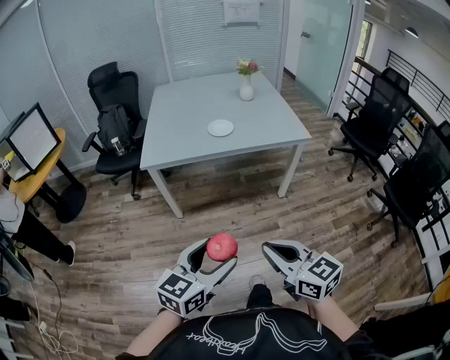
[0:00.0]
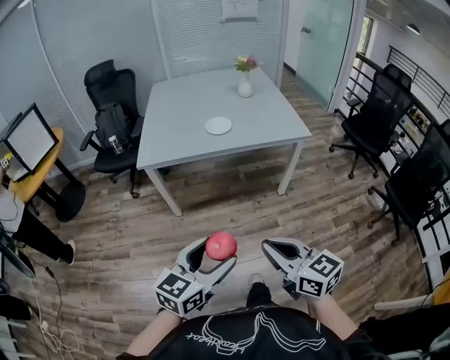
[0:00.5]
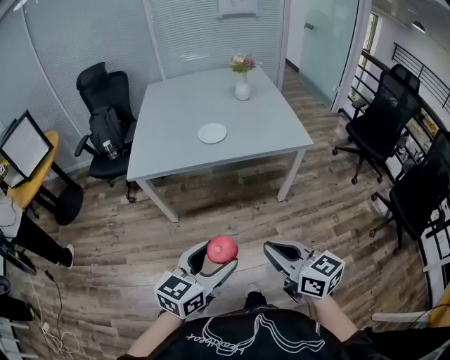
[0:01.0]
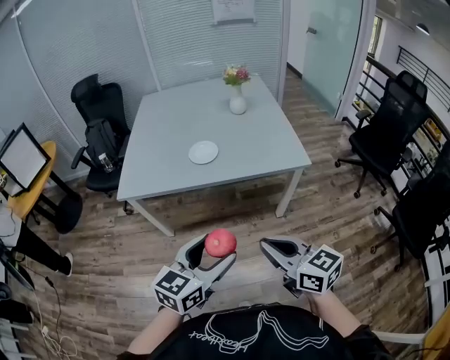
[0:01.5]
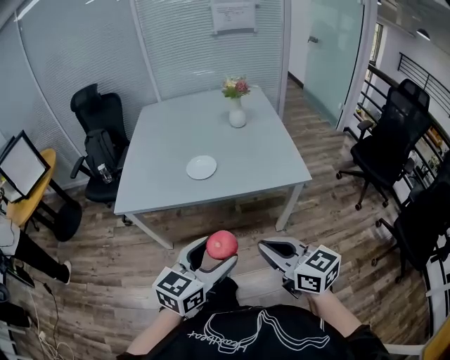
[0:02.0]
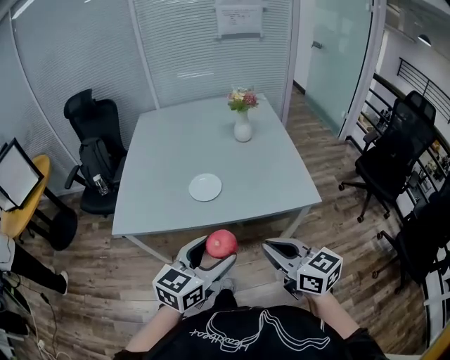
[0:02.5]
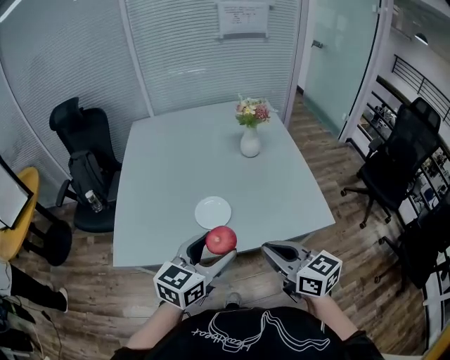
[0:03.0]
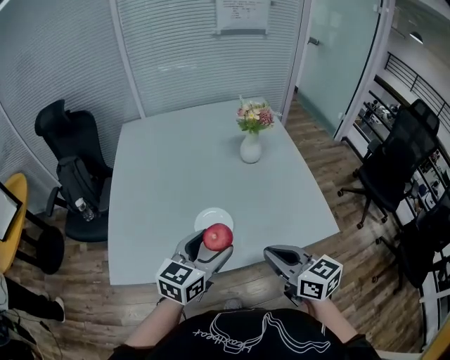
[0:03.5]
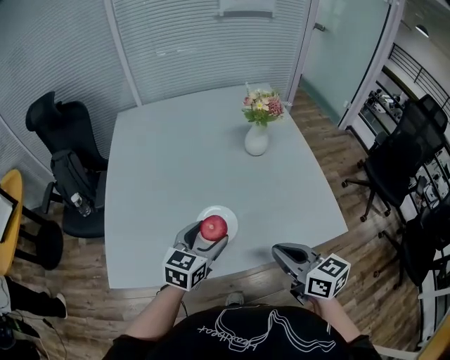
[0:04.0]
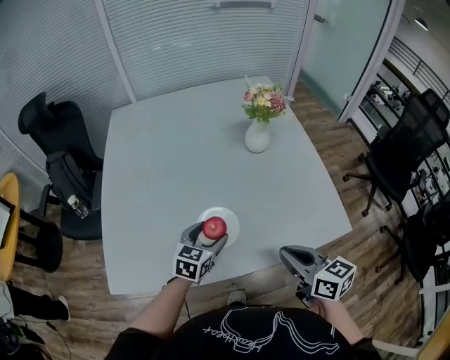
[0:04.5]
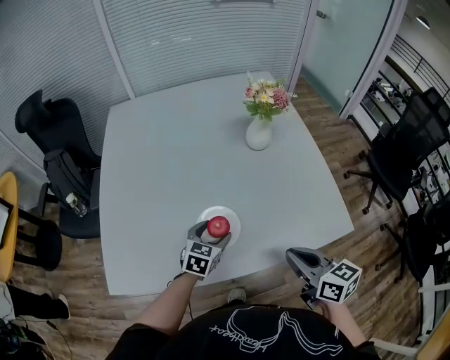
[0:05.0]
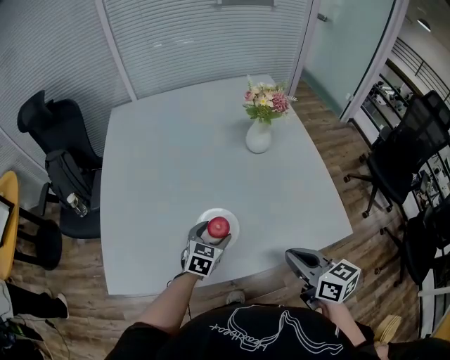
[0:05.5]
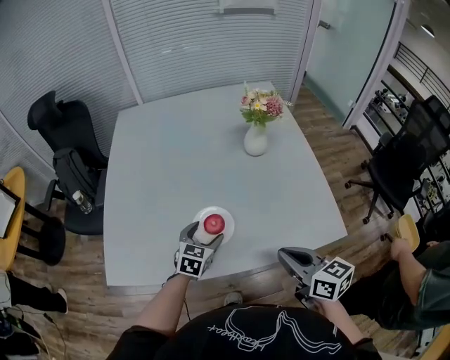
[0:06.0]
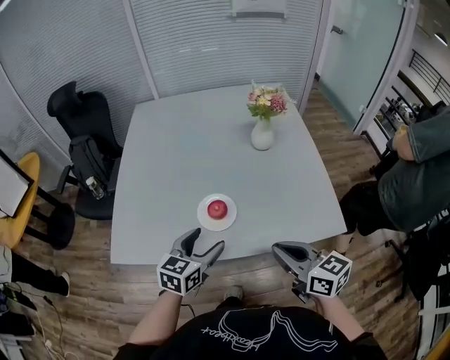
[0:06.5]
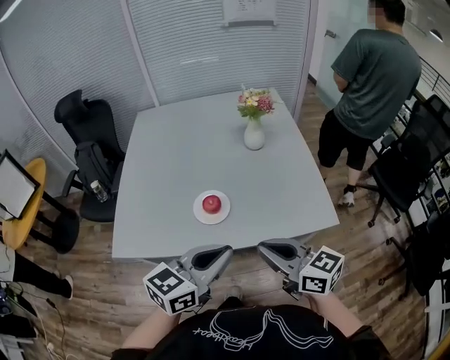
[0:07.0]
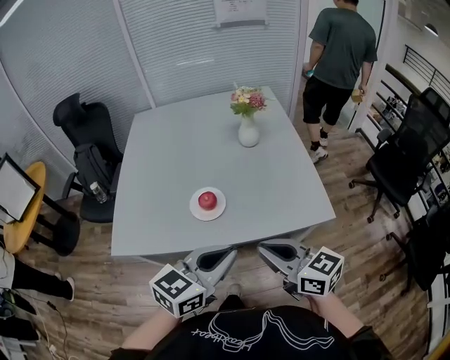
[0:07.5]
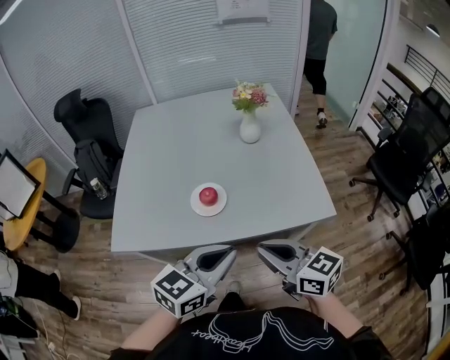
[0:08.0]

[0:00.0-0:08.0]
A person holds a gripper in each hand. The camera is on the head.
0:00.0 to 0:02.0: The grippers both shift forward and to the right by about 30 cm.
0:02.0 to 0:04.0: The grippers both shift forward by about 40 cm.
0:04.0 to 0:06.0: The left gripper moves downward, roughly 10 cm.
0:06.0 to 0:08.0: The left gripper heads backward and upward, covering roughly 35 cm, swivels approximately 30 degrees, and closes; the right gripper shifts some 15 cm backward and upward.

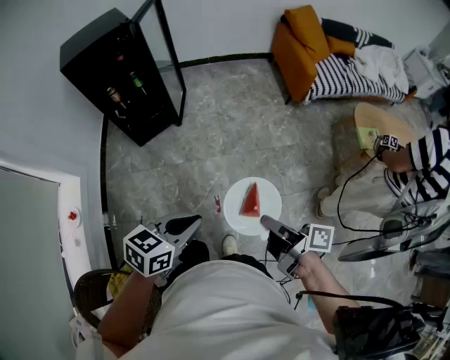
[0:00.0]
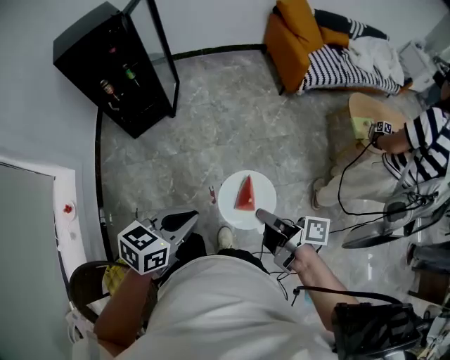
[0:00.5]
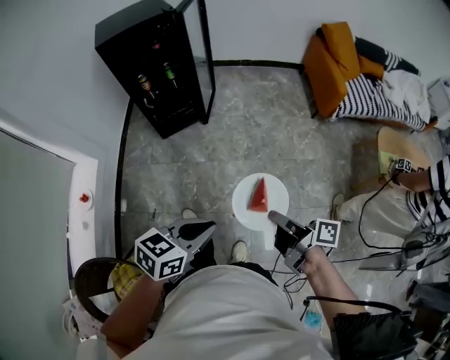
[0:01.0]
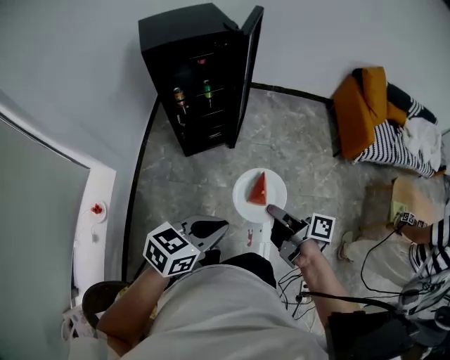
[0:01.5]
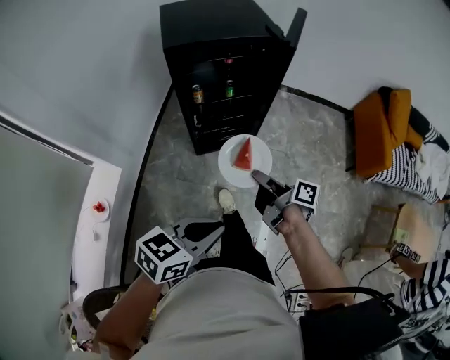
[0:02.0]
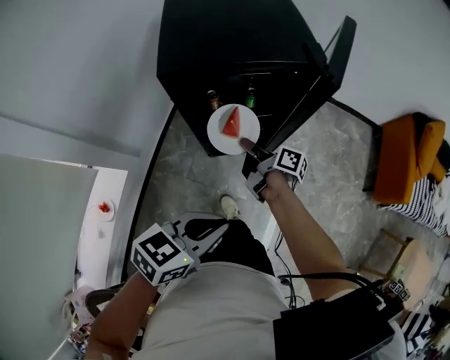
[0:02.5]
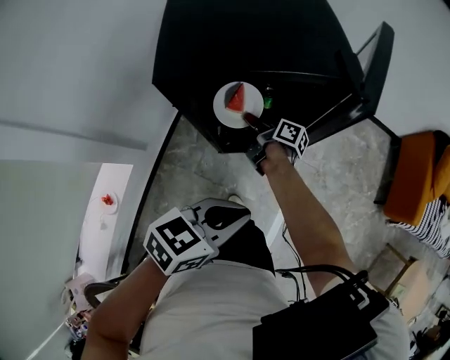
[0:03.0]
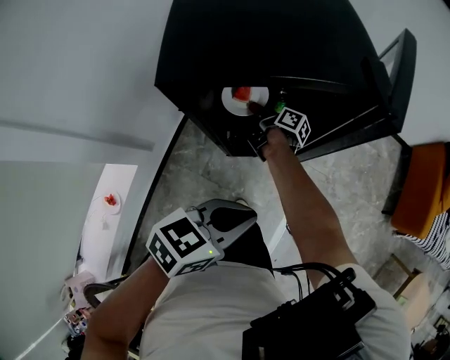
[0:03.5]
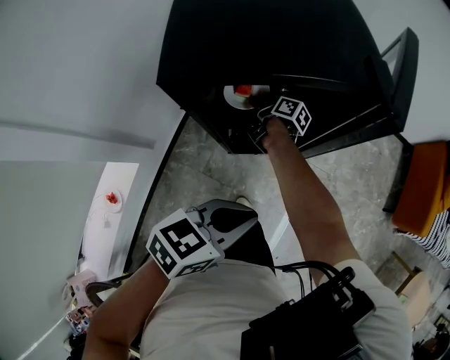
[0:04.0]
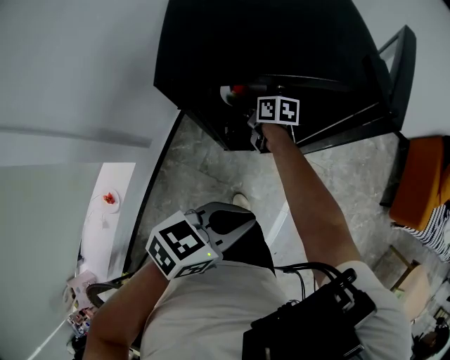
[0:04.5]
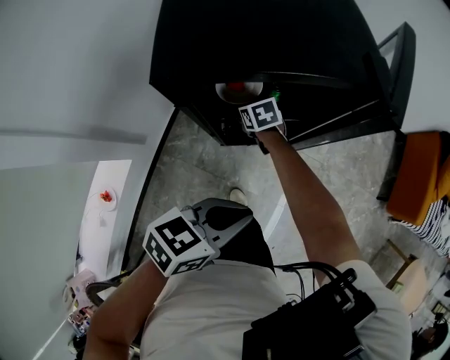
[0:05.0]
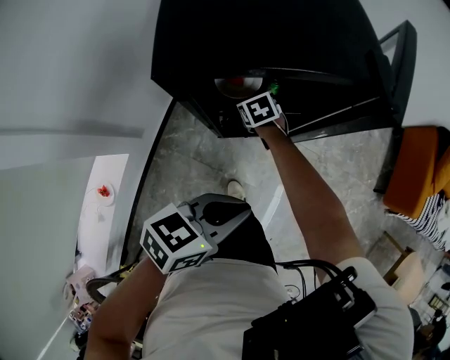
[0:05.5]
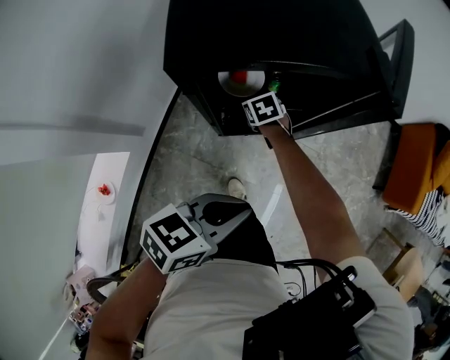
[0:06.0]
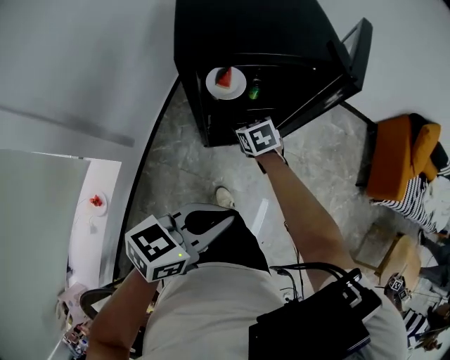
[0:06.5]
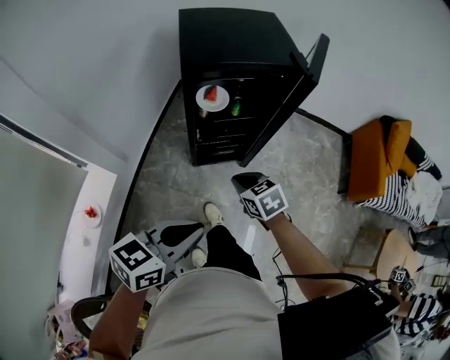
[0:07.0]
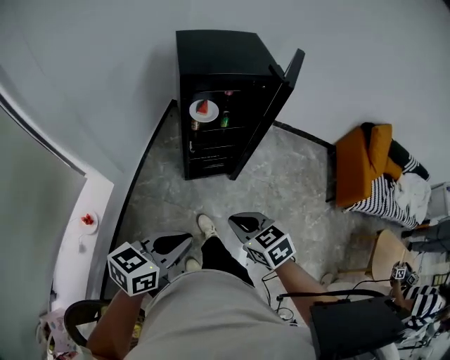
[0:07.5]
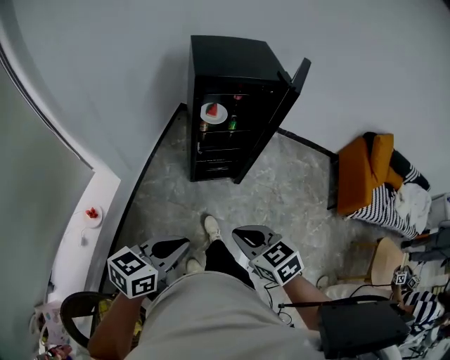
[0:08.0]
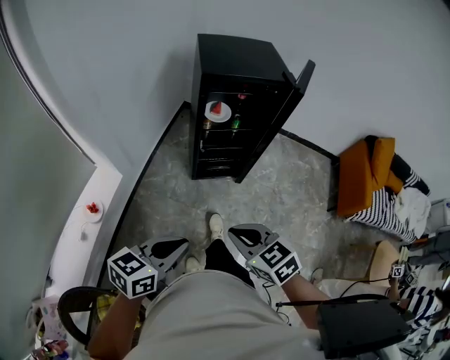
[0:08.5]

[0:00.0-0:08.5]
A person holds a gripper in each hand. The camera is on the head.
0:00.0 to 0:02.0: Both grippers are carried to the left and forward, approximately 50 cm.
0:02.0 to 0:04.0: The right gripper is displaced forward, to the left and downward by about 50 cm. The left gripper heads forward, covering about 30 cm.
0:04.0 to 0:06.5: The right gripper goes approximately 15 cm backward, twists some 70 degrees counterclockwise, seen from behind, and opens up, while the left gripper travels backward and upward by about 10 cm.
0:06.5 to 0:08.5: The right gripper heads backward and upward, covering about 50 cm, rotates about 20 degrees, and closes its fingers. Meanwhile the left gripper travels backward by about 25 cm.

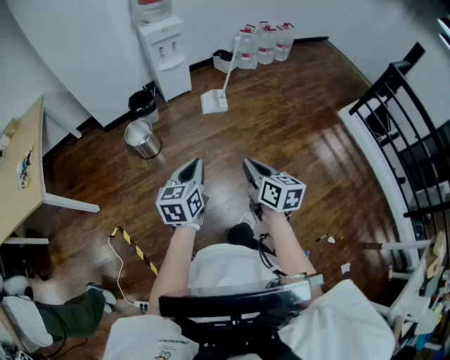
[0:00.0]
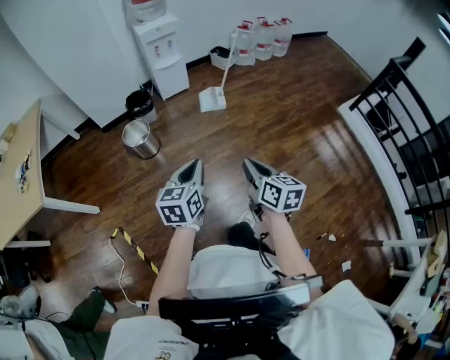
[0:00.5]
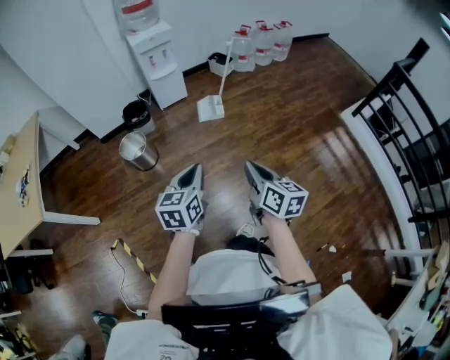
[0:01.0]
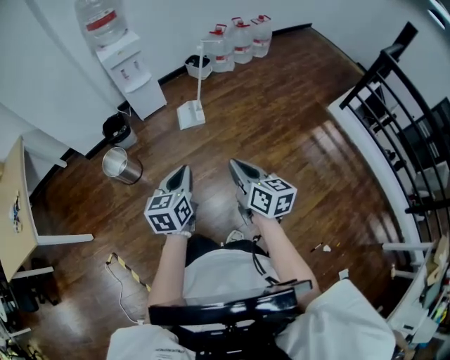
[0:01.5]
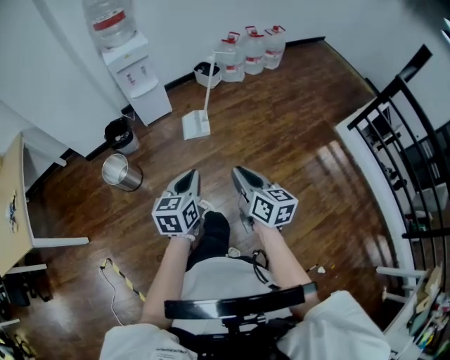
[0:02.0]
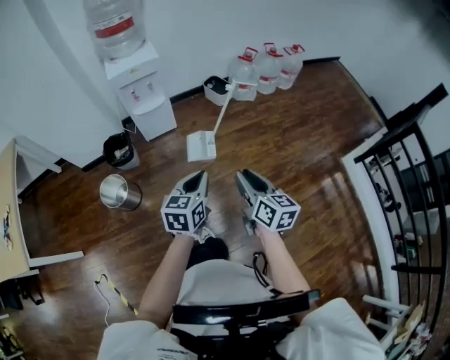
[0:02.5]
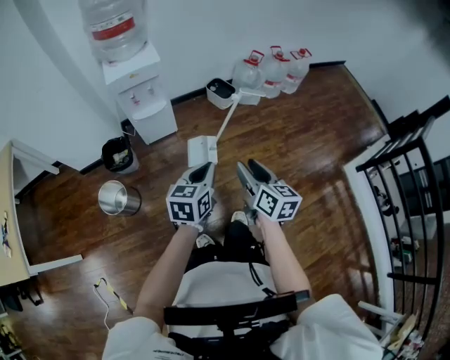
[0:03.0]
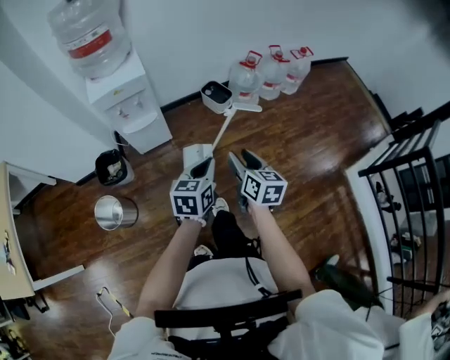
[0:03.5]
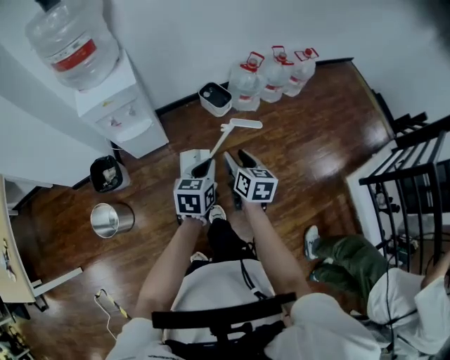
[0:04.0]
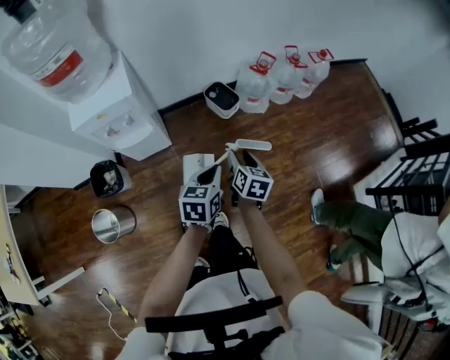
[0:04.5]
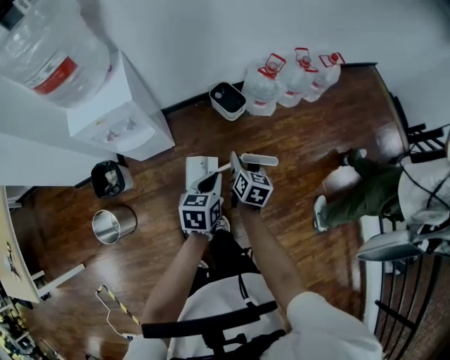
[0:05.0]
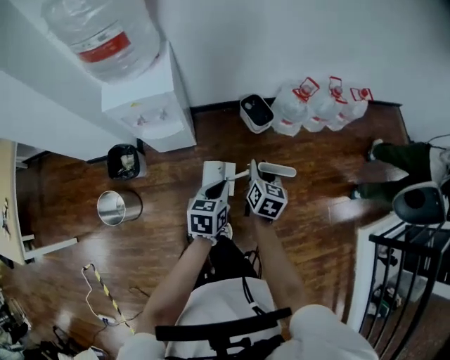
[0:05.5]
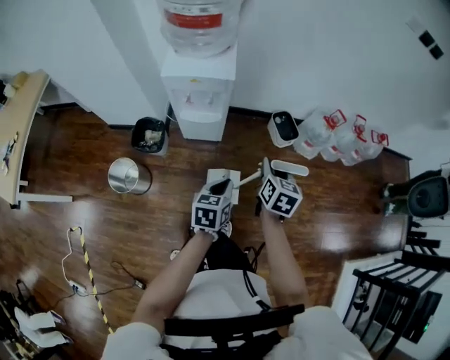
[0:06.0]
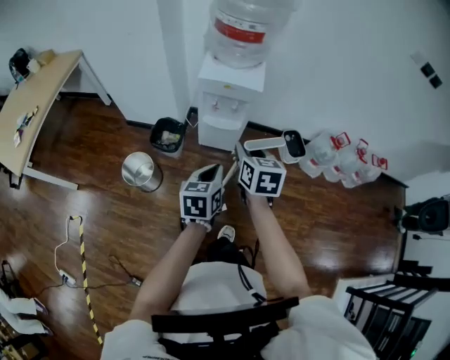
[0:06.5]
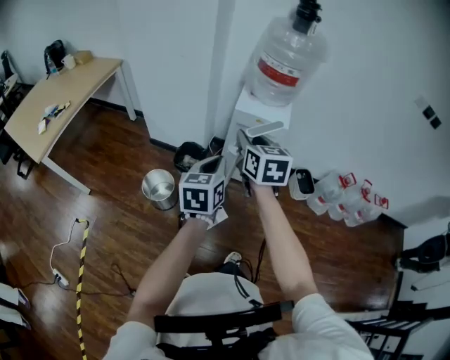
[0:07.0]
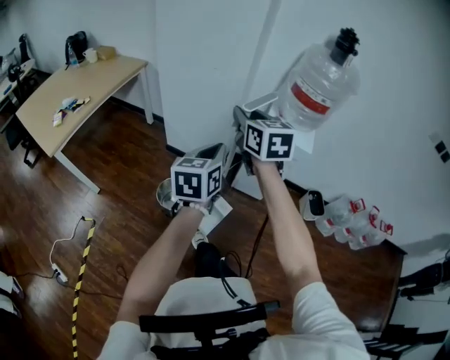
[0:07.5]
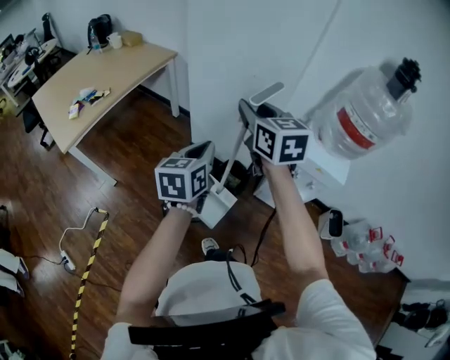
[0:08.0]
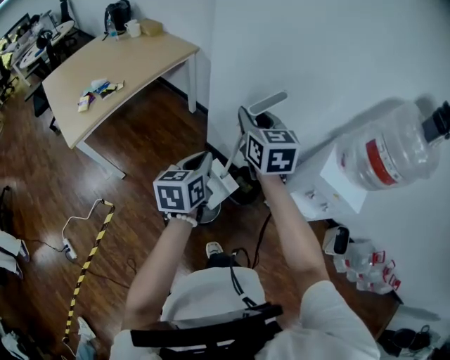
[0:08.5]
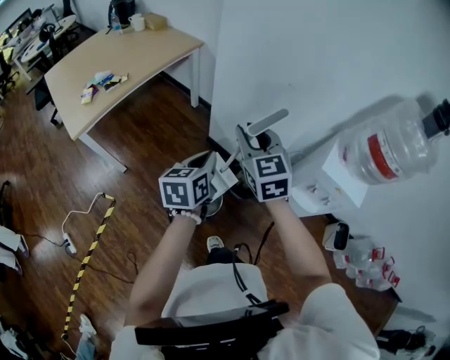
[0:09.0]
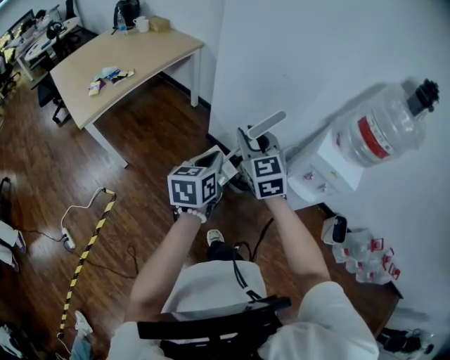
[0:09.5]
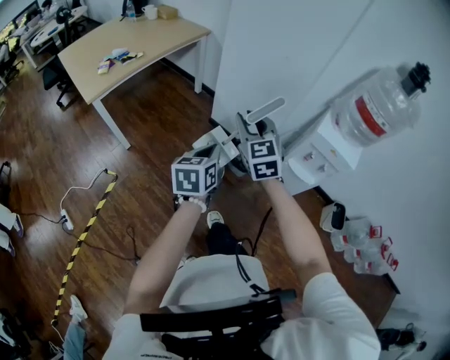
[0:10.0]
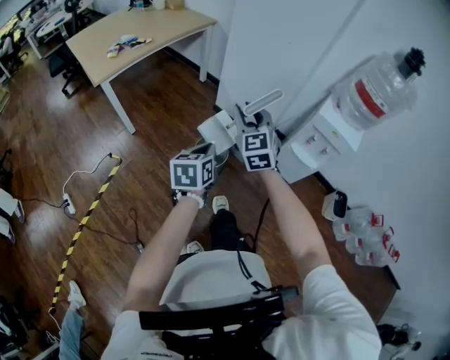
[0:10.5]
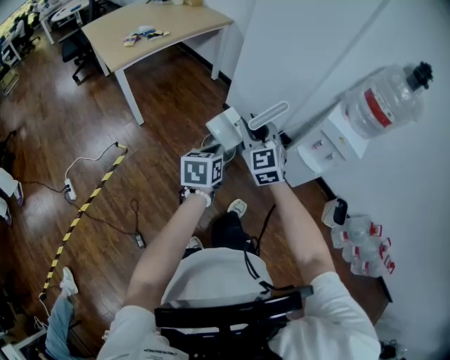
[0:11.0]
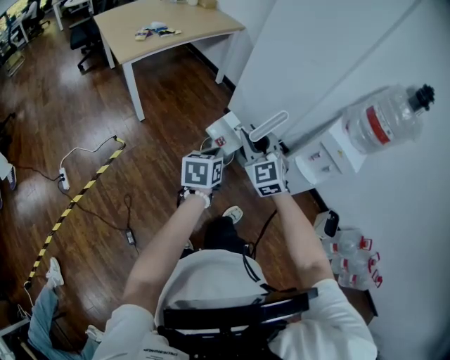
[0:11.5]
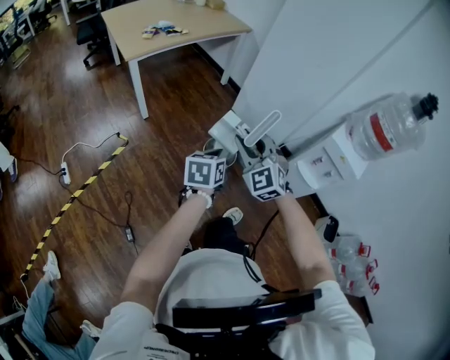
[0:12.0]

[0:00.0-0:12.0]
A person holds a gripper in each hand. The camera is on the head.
0:00.0 to 0:02.0: Both grippers travel together forward and to the right, roughly 30 cm.
0:02.0 to 0:04.0: The pair of grippers is taken forward, about 60 cm. The right gripper opens.
0:04.0 to 0:06.0: The right gripper moves to the left and forward, approximately 15 cm. The left gripper moves to the left, some 15 cm, and turns by approximately 20 degrees.
0:06.0 to 0:08.0: The pair of grippers is taken about 60 cm. The right gripper changes its angle by some 60 degrees; the left gripper changes its angle by roughly 40 degrees.
0:08.0 to 0:10.0: The grippers both shift backward, downward and to the left by approximately 20 cm. The right gripper changes its angle by roughly 20 degrees.
0:10.0 to 0:12.0: The right gripper travels backward and to the left by roughly 20 cm, and rotates approximately 30 degrees. Meanwhile the left gripper moves backward, to the left and downward, approximately 15 cm.
